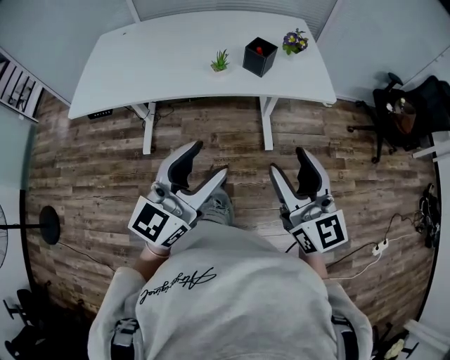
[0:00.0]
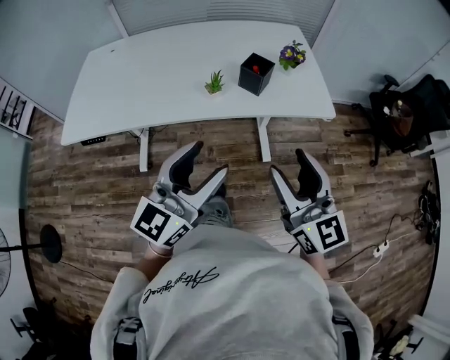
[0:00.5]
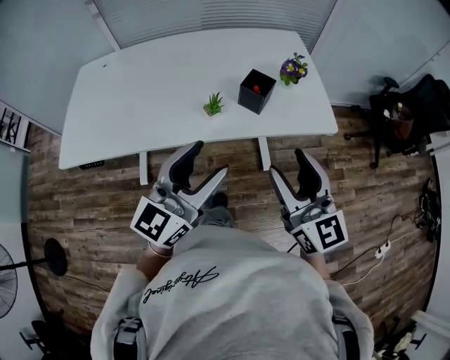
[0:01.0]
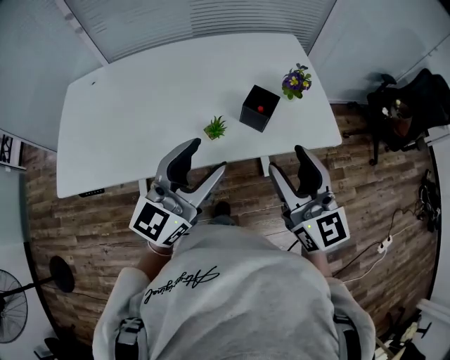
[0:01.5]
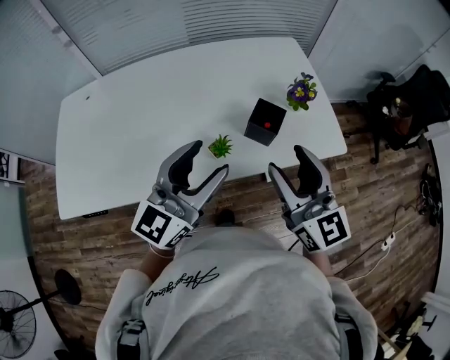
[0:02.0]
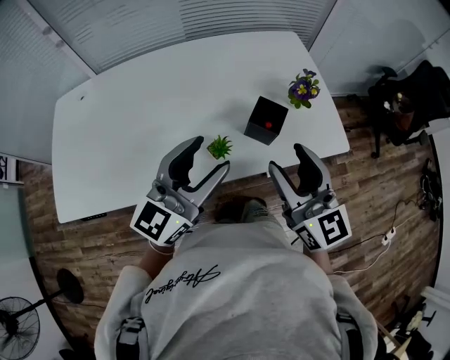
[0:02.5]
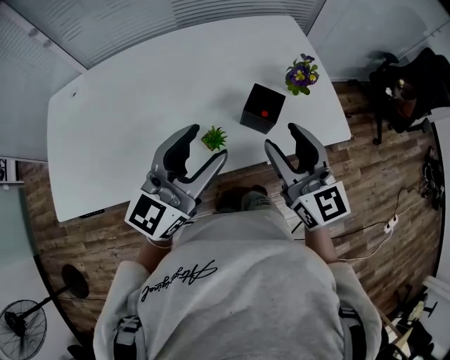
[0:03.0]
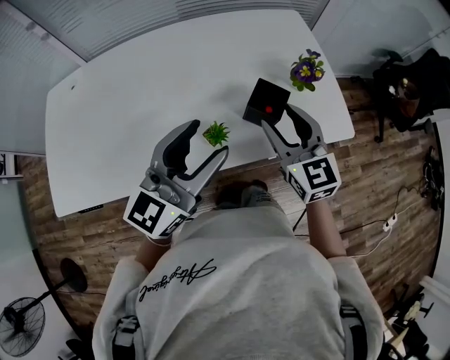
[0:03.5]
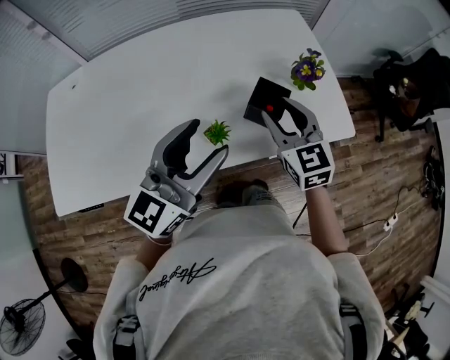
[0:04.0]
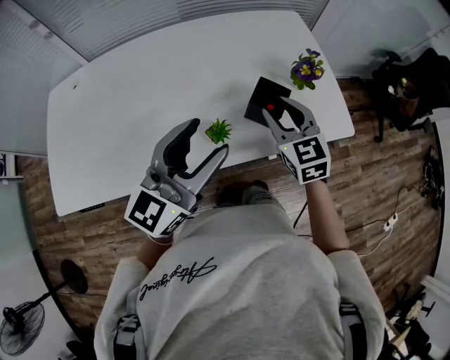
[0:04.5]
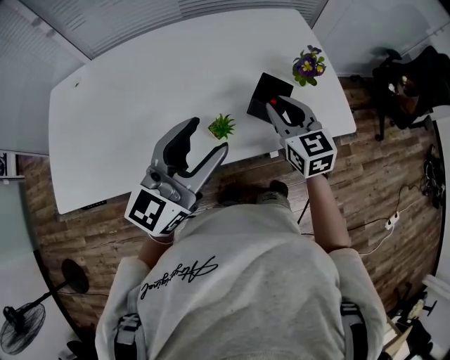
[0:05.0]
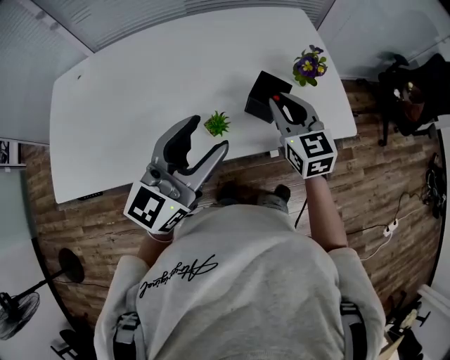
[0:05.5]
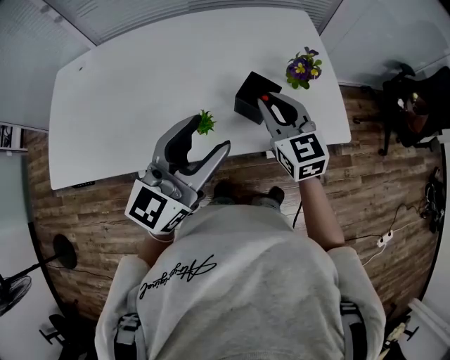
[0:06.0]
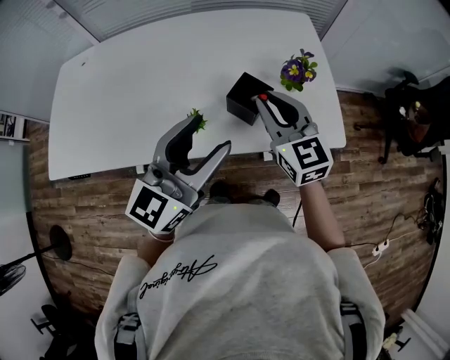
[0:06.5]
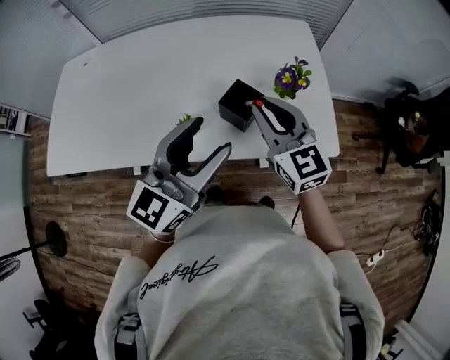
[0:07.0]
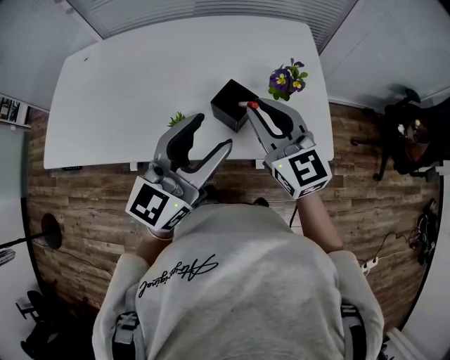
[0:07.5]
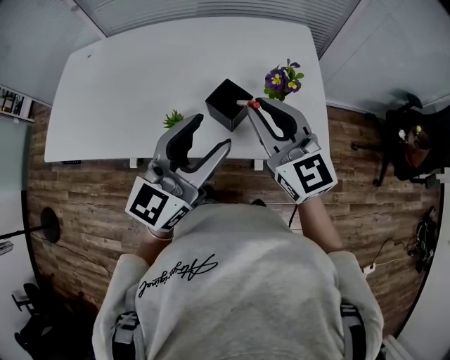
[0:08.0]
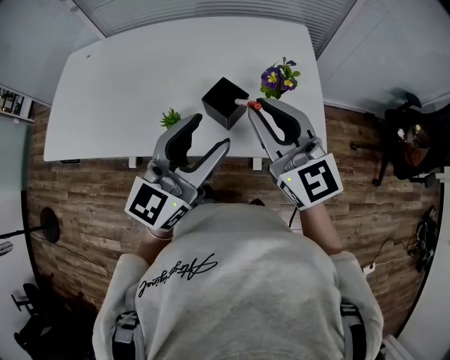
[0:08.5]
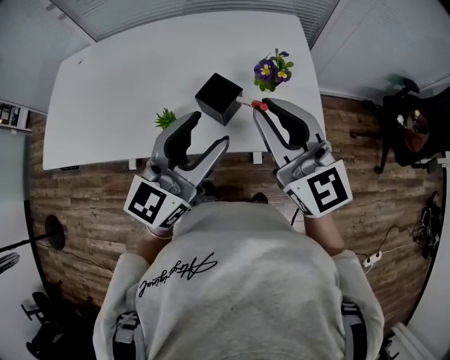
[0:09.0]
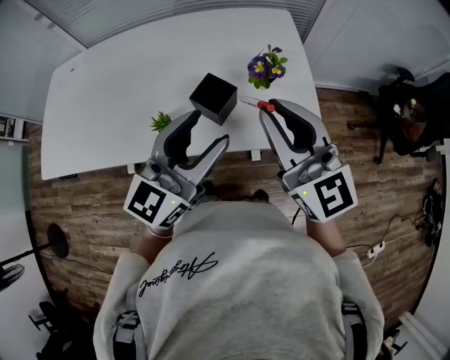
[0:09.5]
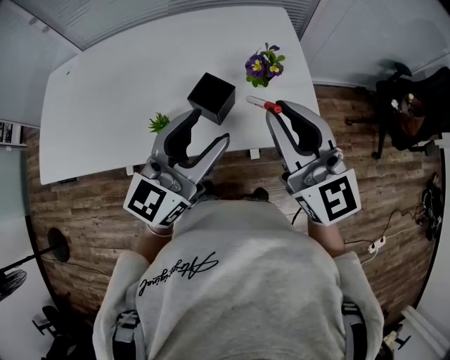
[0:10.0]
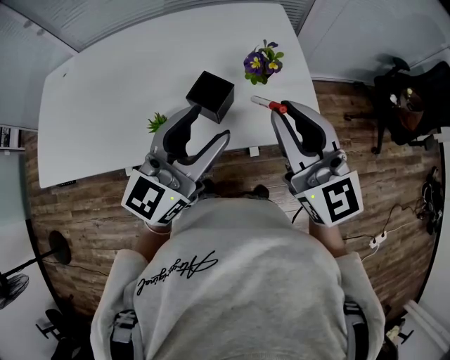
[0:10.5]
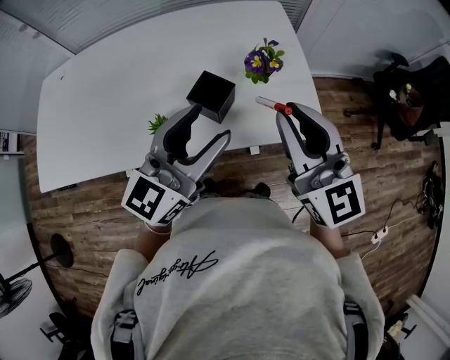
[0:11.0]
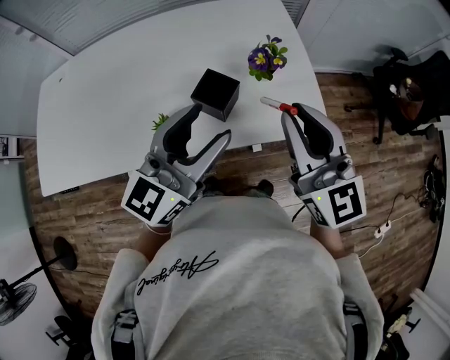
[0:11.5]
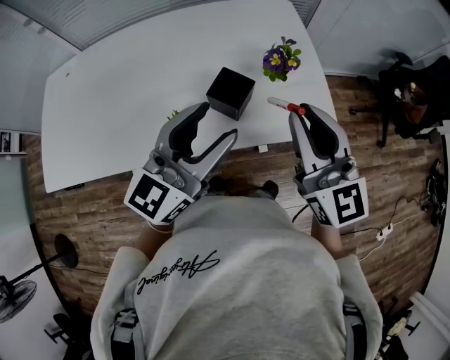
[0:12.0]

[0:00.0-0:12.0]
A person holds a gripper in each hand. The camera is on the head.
0:00.0 to 0:02.0: Both grippers move forward, about 30 cm.
0:02.0 to 0:04.0: The right gripper moves forward and downward, some 15 cm, and swivels roughly 20 degrees.
0:04.0 to 0:06.0: The right gripper closes its fingers; the left gripper ends up roughly 5 cm from where it was.
0:06.0 to 0:08.0: The left gripper moves to the right, about 10 cm. The right gripper is displaced upward by about 10 cm, and swivels some 20 degrees.
0:08.0 to 0:10.0: The right gripper moves to the right, about 5 cm.
0:10.0 to 0:12.0: There are only small adjustments of the grippers.

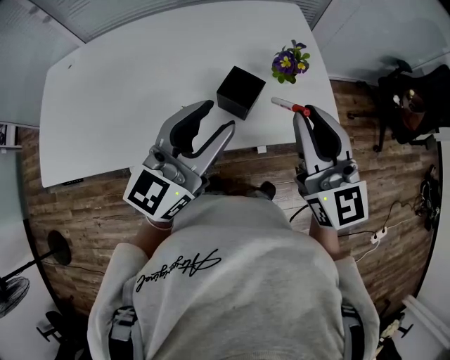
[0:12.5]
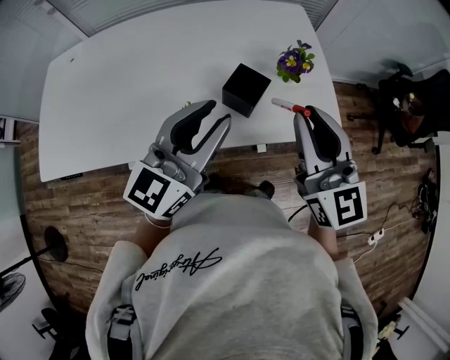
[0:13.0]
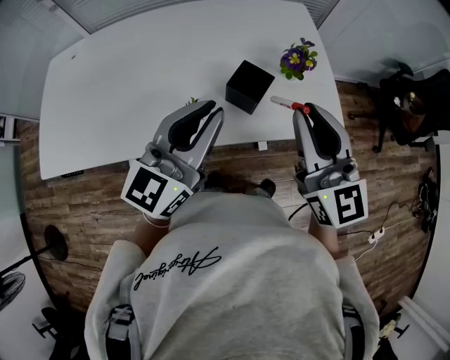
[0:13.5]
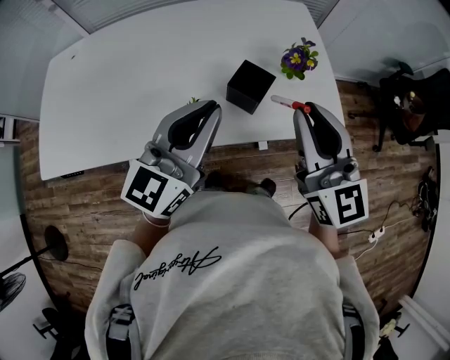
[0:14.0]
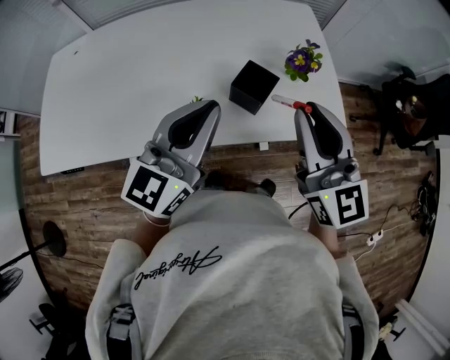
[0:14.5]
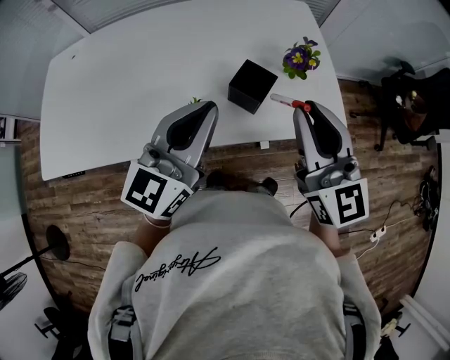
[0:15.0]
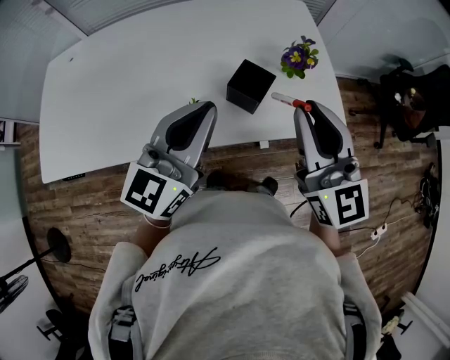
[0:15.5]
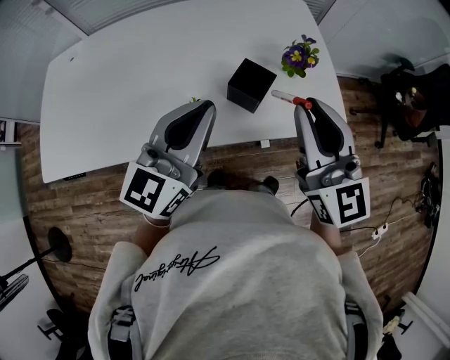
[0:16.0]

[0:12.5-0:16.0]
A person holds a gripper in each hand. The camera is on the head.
0:12.5 to 0:14.5: The left gripper closes.
0:14.5 to 0:16.0: The two grippers keep their place.

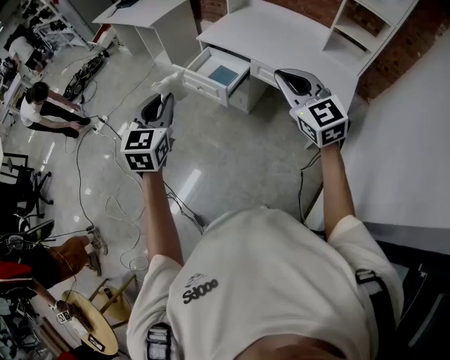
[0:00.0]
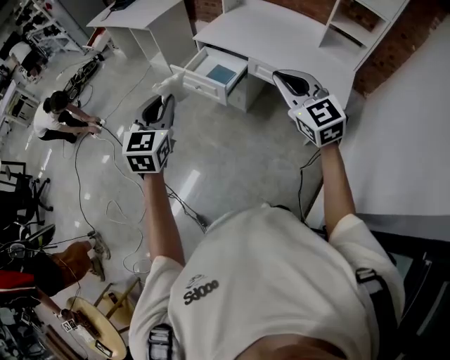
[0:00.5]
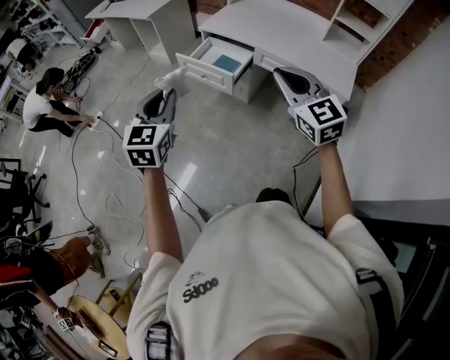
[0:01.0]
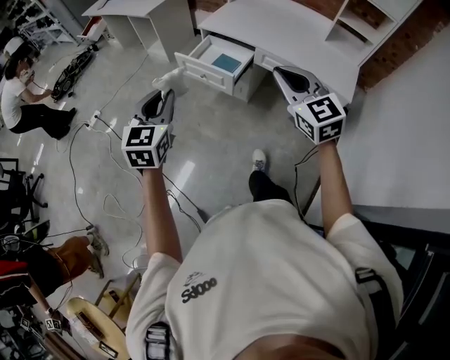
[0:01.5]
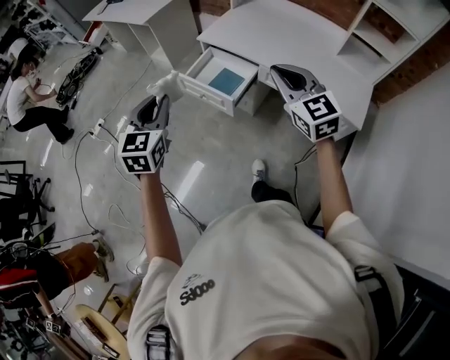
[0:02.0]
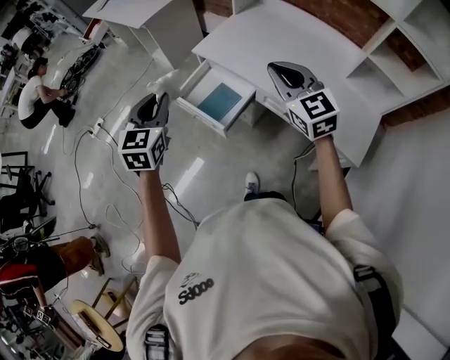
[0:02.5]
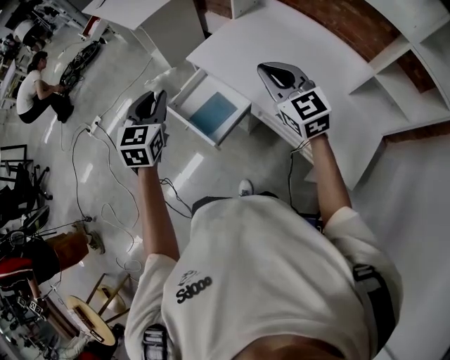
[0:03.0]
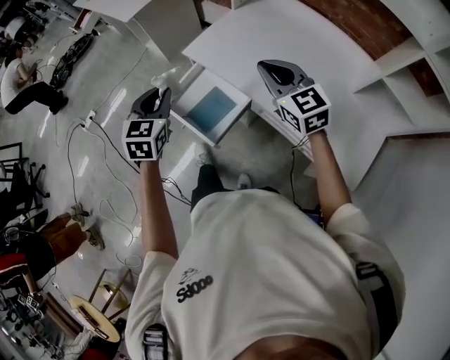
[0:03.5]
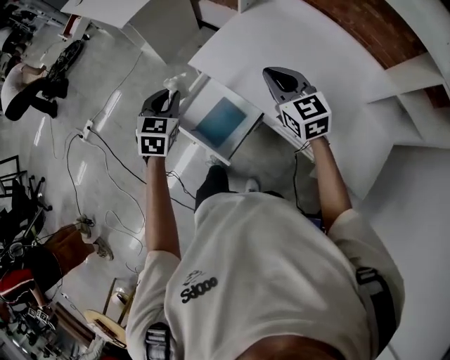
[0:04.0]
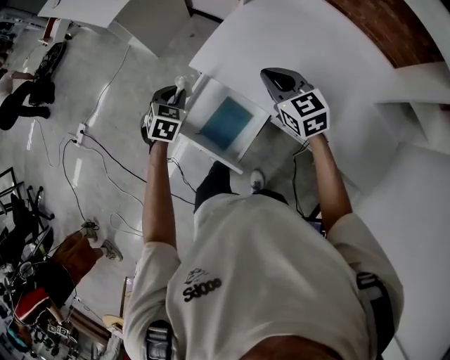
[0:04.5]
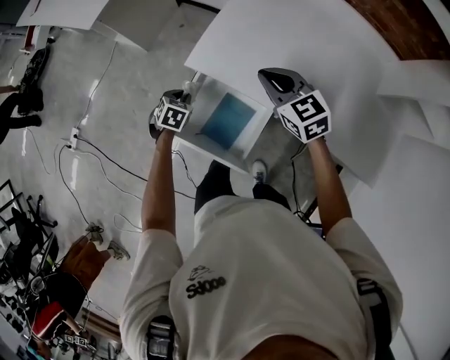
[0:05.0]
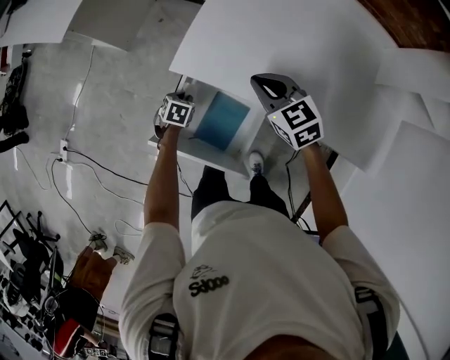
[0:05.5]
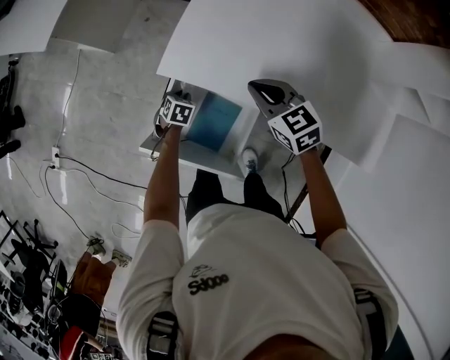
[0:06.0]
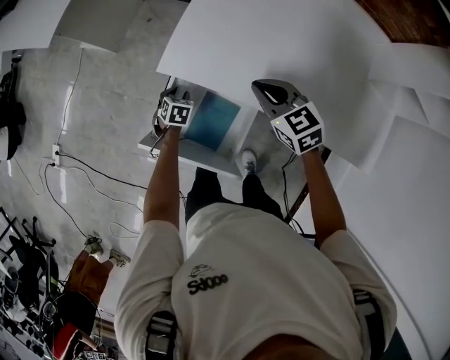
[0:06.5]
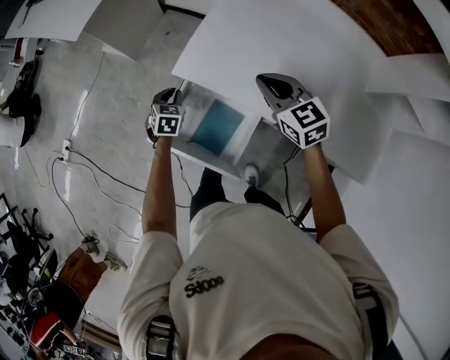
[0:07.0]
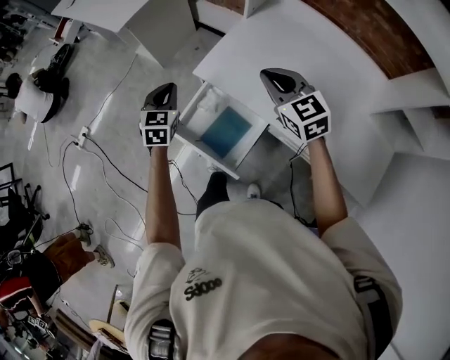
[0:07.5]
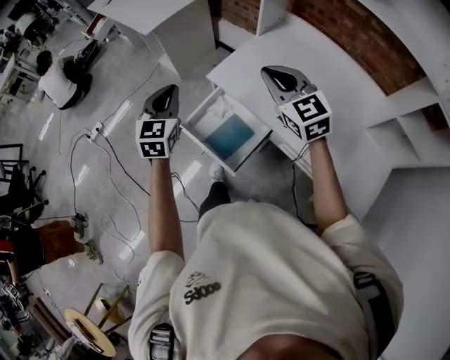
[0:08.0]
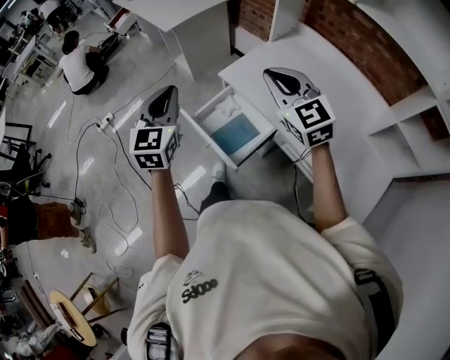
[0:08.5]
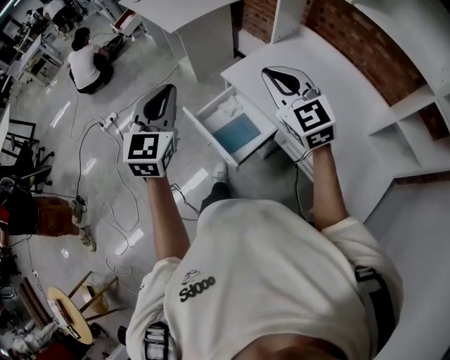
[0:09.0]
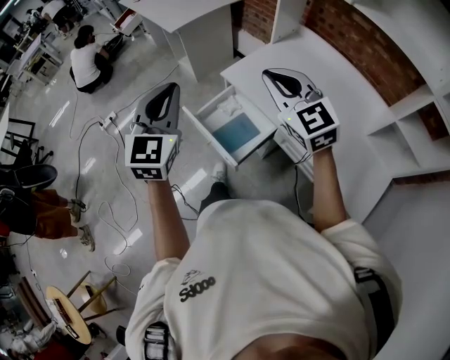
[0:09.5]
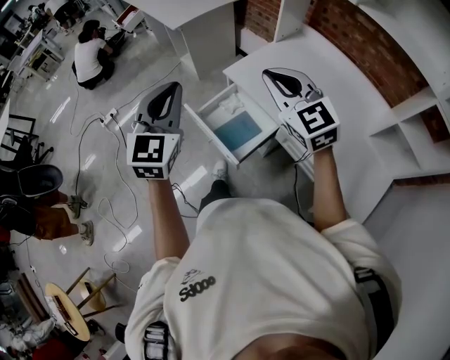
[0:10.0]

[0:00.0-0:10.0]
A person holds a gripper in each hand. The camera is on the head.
0:00.0 to 0:02.0: Both grippers travel together forward, some 15 cm.
0:02.0 to 0:04.0: Both grippers are carried forward, roughly 40 cm.
0:04.0 to 0:06.0: The right gripper is displaced downward by some 15 cm, and rotates about 20 degrees; the left gripper shifts some 40 cm downward, and angles its fingers downward, by some 30 degrees.
0:06.0 to 0:08.0: The left gripper shifts about 50 cm upward, and tips its fingers upward by some 50 degrees; the right gripper shifts roughly 30 cm upward and backward, and changes its angle by roughly 40 degrees.
0:08.0 to 0:10.0: The left gripper heads backward and upward, covering approximately 20 cm. The right gripper moves backward, upward and to the left, some 15 cm.

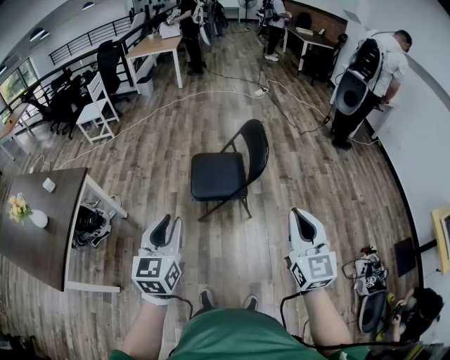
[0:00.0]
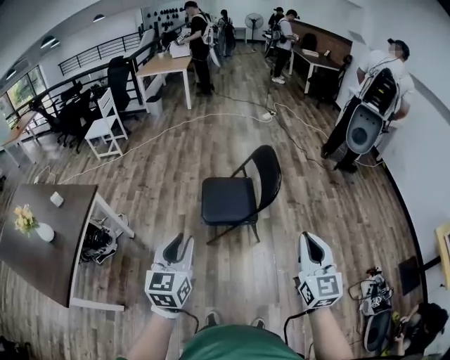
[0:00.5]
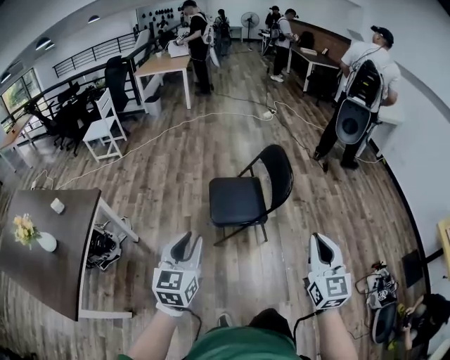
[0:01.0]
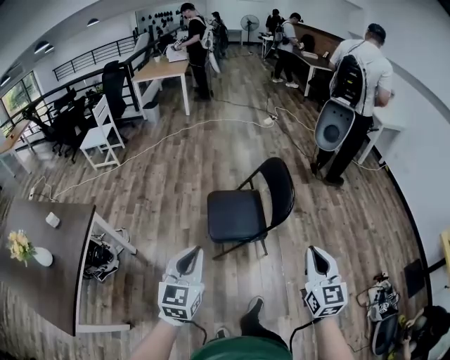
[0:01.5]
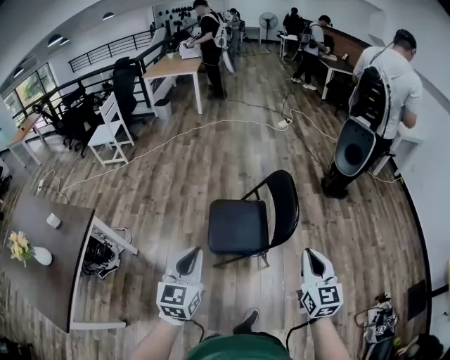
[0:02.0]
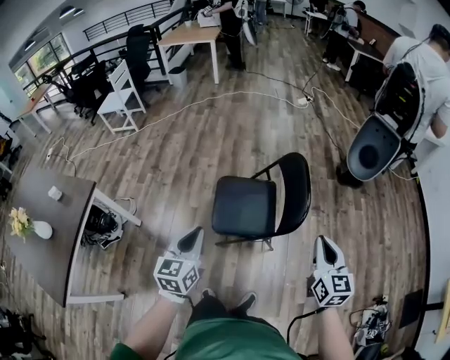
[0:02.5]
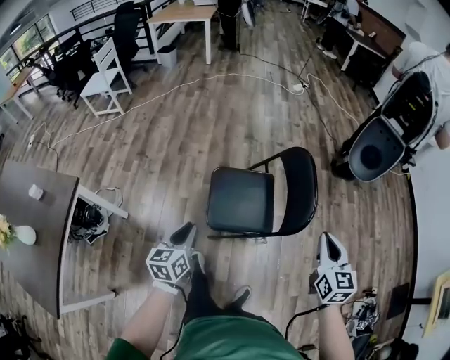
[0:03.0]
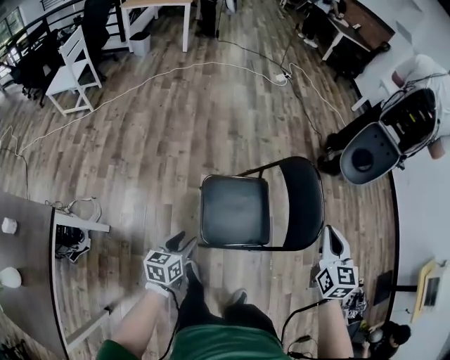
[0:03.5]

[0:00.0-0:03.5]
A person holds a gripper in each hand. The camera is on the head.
0:00.0 to 0:02.0: The two grippers go roughly 25 cm forward.
0:02.0 to 0:03.5: The right gripper goes about 30 cm forward and to the left. Meanwhile the left gripper shifts some 40 cm downward, forward and to the left, rotates roughly 40 degrees, and opens up.
